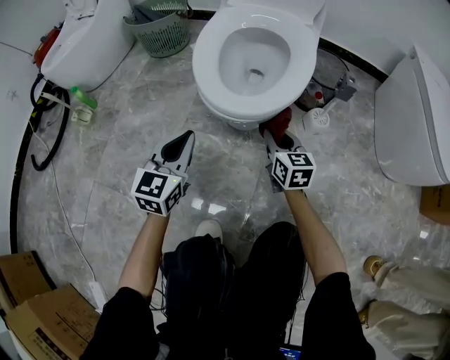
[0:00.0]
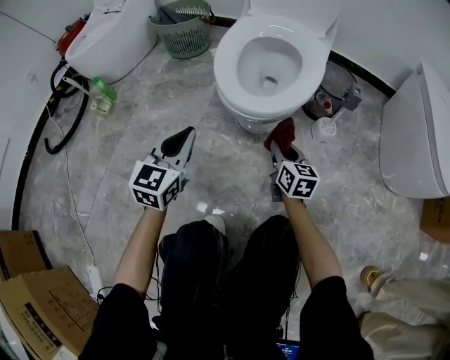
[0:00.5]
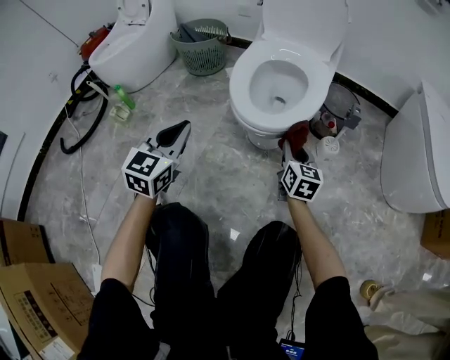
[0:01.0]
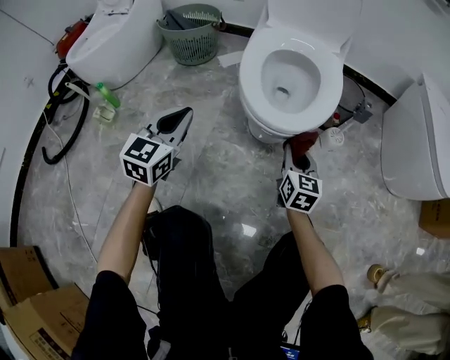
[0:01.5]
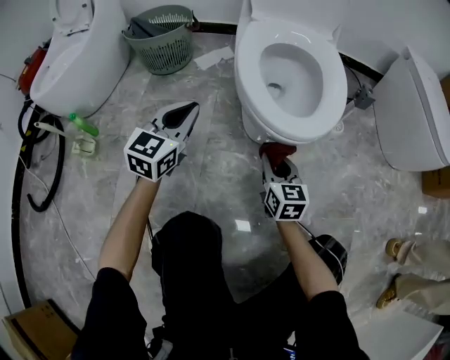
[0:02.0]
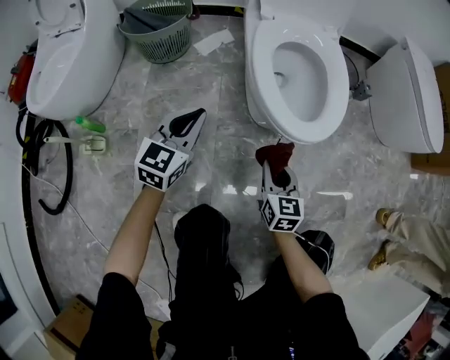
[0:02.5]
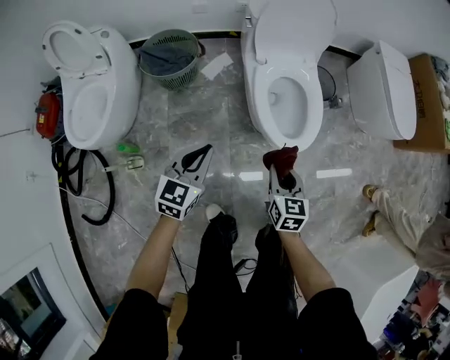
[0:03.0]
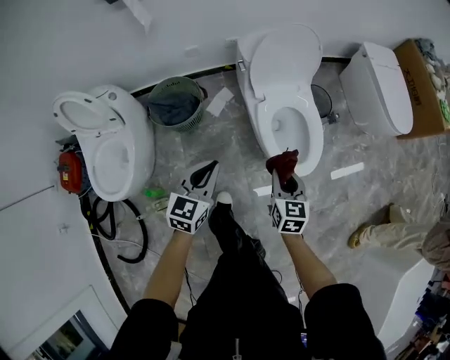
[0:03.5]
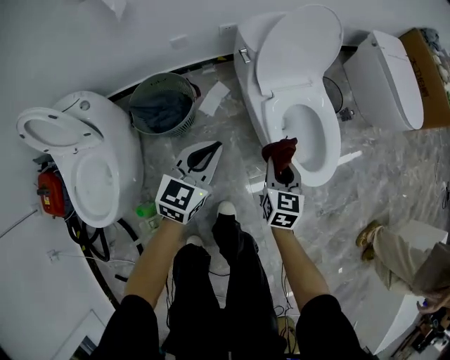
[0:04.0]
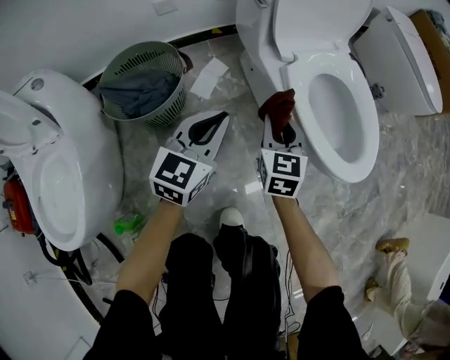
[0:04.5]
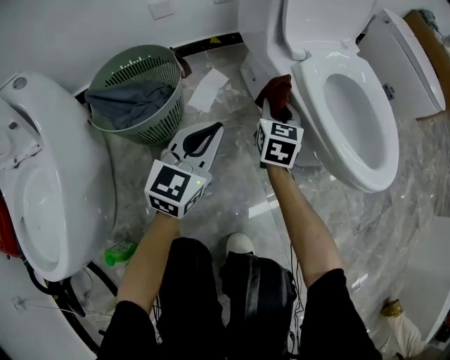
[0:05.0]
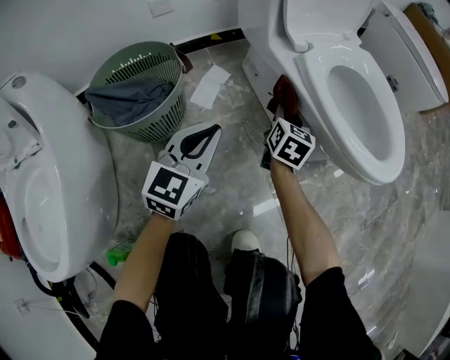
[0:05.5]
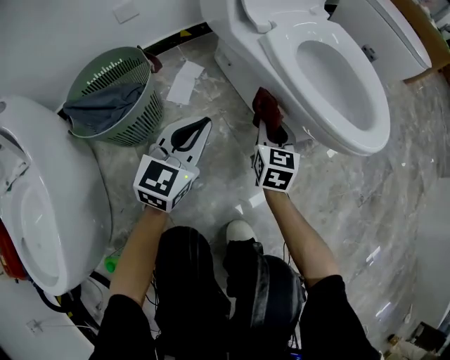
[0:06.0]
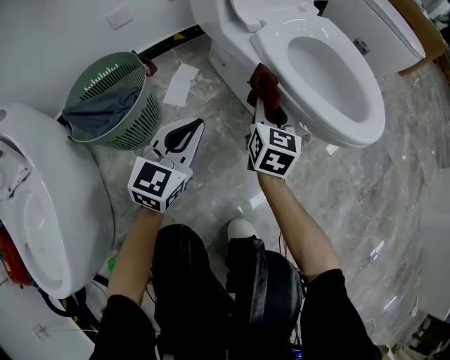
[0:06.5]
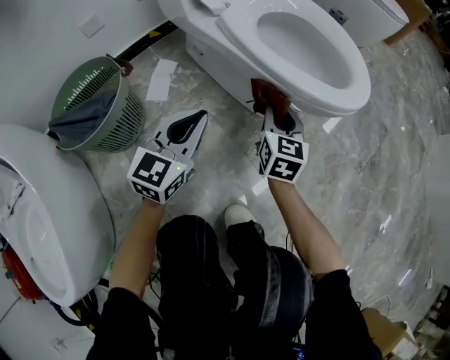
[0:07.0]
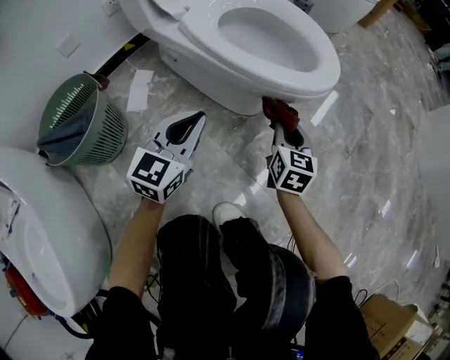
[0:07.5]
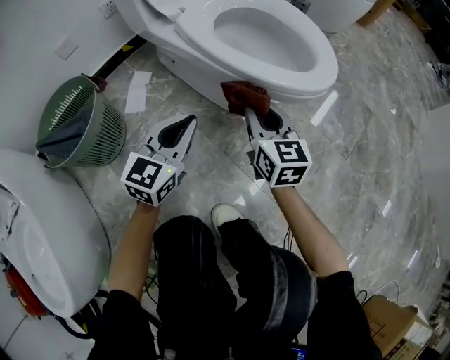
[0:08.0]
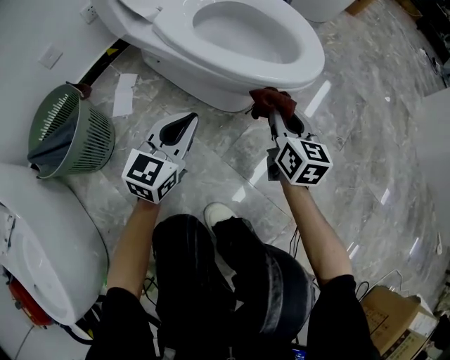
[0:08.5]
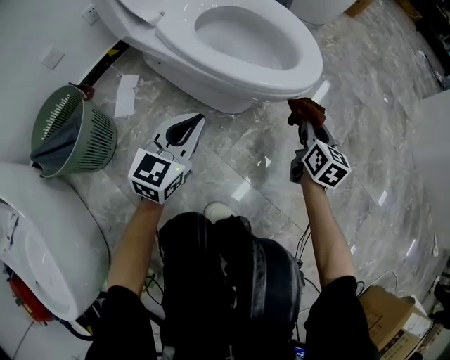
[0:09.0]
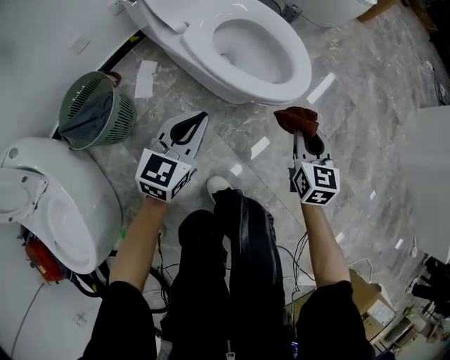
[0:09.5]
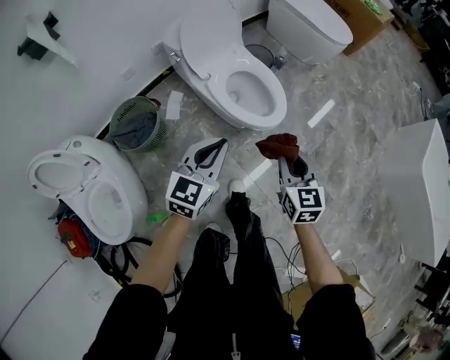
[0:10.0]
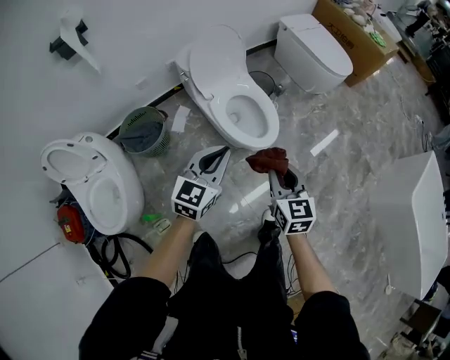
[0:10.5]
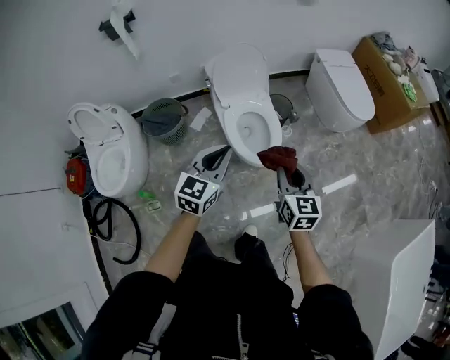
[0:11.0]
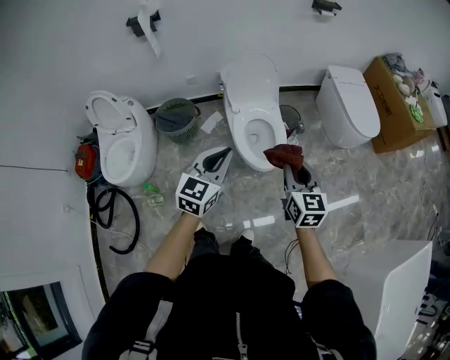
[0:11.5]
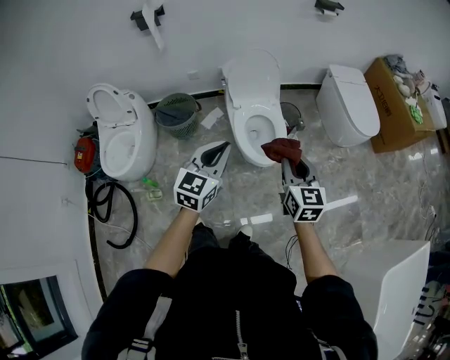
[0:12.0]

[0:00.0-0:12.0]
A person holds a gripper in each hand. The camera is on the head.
0:00.0 to 0:02.0: The left gripper is displaced to the left and forward by about 20 cm; the right gripper heads to the left, covering some 15 cm.
0:02.0 to 0:04.0: Both grippers move upward, approximately 30 cm. The left gripper swivels roughly 30 degrees; the right gripper changes its angle by approximately 30 degrees.
0:04.0 to 0:06.0: Both grippers travel together downward, approximately 35 cm.
0:06.0 to 0:08.0: The right gripper goes about 15 cm to the right and upward. Meanwhile the left gripper goes approximately 15 cm to the right.
0:08.0 to 0:10.0: Both grippers travel together upward, approximately 50 cm.
0:10.0 to 0:12.0: Both grippers move upward, roughly 20 cm. The right gripper swivels approximately 30 degrees, while the left gripper swivels approximately 30 degrees.

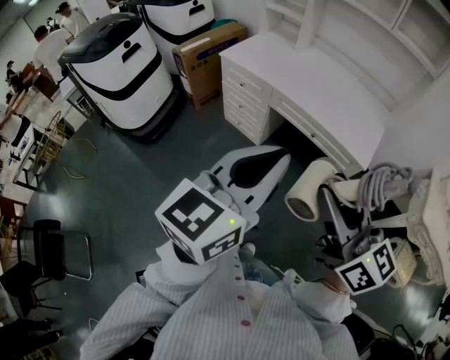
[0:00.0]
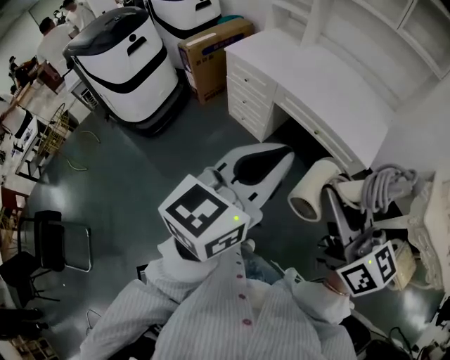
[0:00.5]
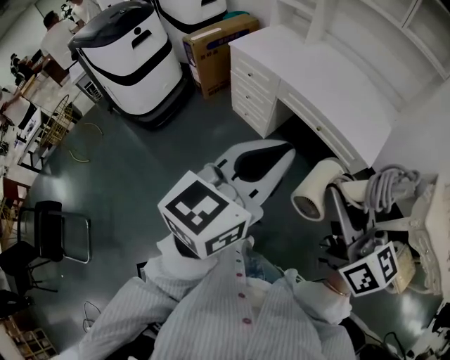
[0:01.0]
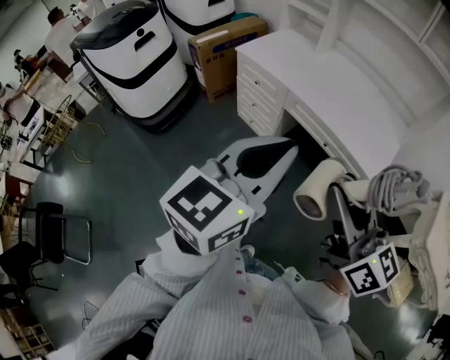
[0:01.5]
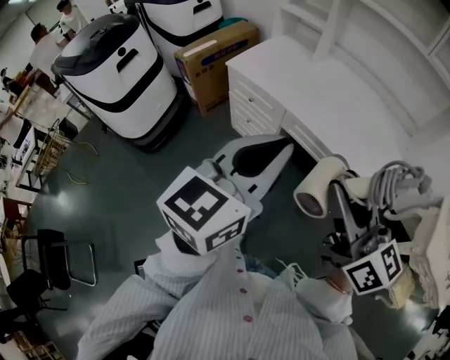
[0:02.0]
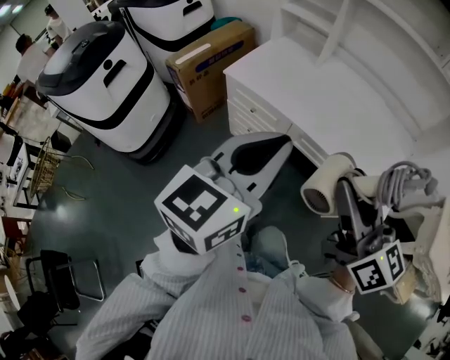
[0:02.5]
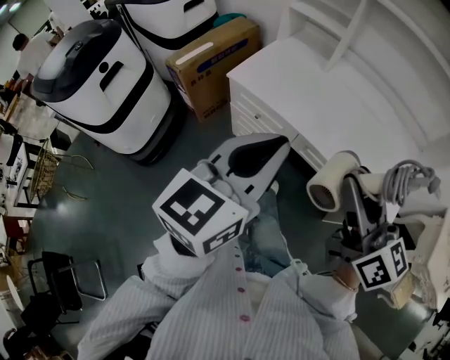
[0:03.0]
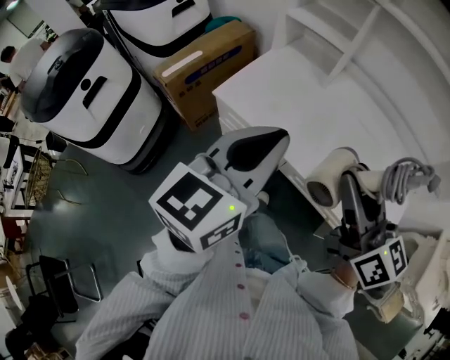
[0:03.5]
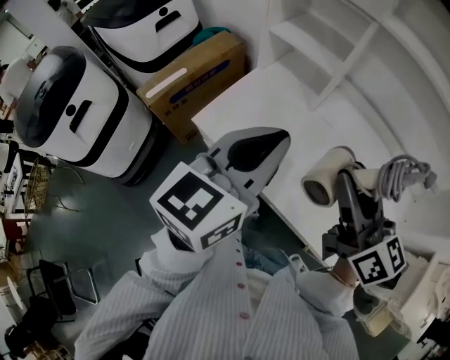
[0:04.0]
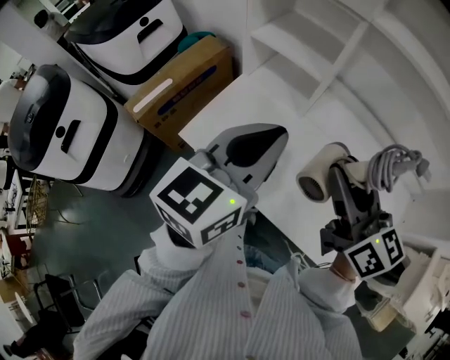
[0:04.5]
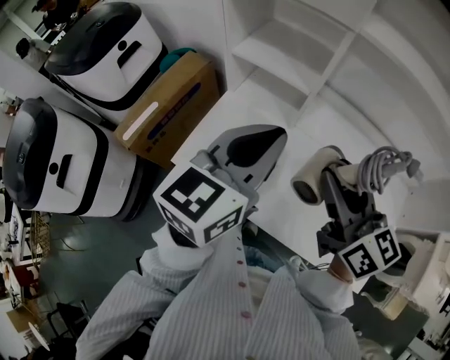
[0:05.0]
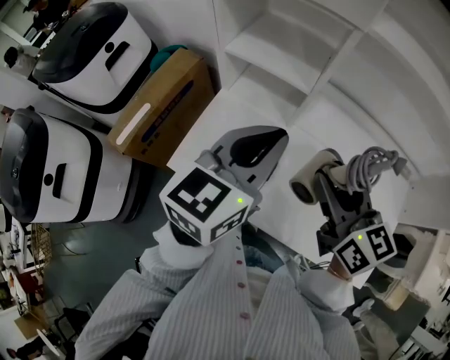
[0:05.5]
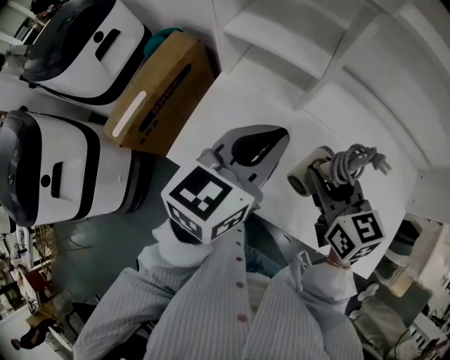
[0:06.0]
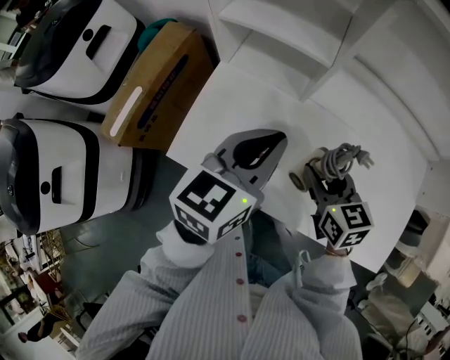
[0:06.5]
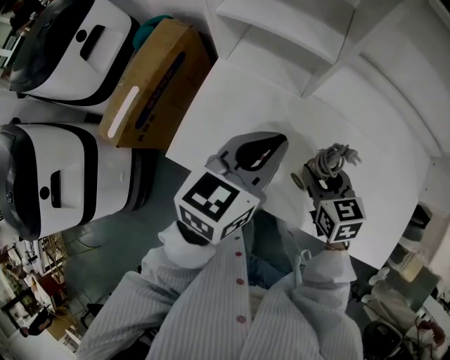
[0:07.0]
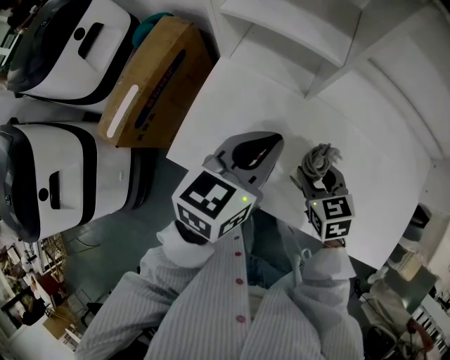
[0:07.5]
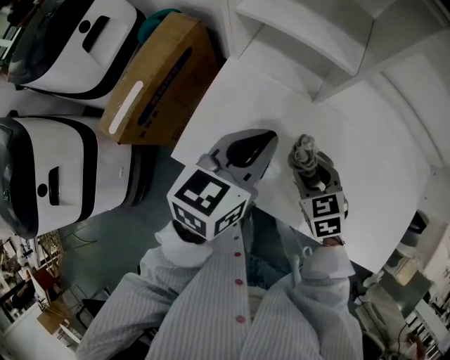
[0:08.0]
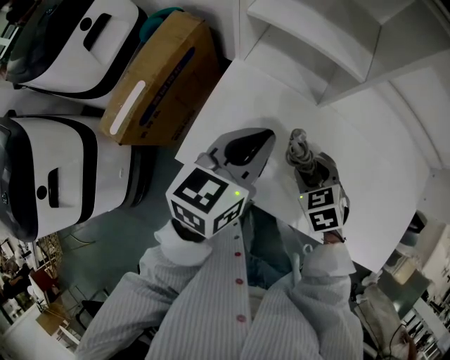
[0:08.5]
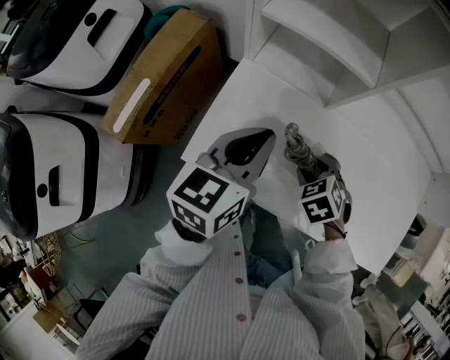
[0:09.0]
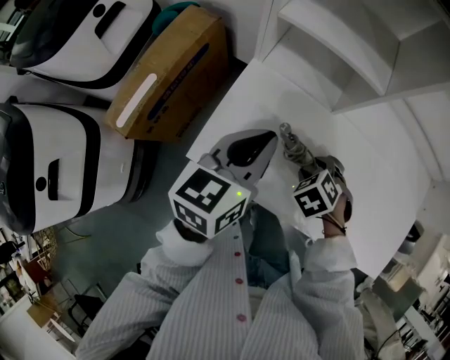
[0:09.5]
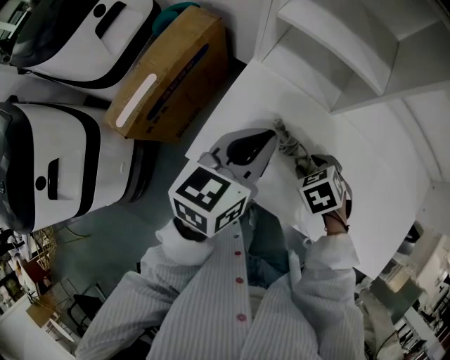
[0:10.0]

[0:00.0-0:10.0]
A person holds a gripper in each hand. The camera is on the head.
0:00.0 to 0:02.0: Both grippers move forward, roughly 20 cm.
0:02.0 to 0:04.0: The two grippers travel together, forward, roughly 50 cm.
0:04.0 to 0:06.0: The left gripper is displaced forward and downward by about 15 cm; the right gripper goes some 20 cm downward and forward, and swivels approximately 30 degrees.
0:06.0 to 0:08.0: The right gripper shifts approximately 20 cm downward, and turns by approximately 30 degrees, while the left gripper heads downward and to the left, covering some 10 cm.
0:08.0 to 0:10.0: The right gripper moves roughly 5 cm, and swivels roughly 20 degrees, while the left gripper ends up roughly 5 cm from where it was.

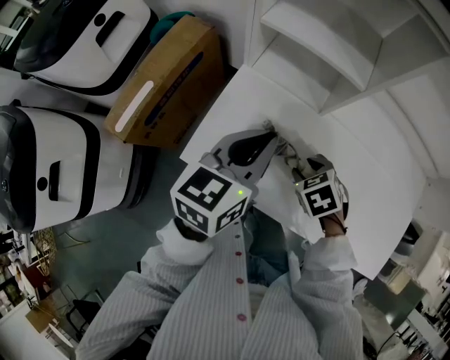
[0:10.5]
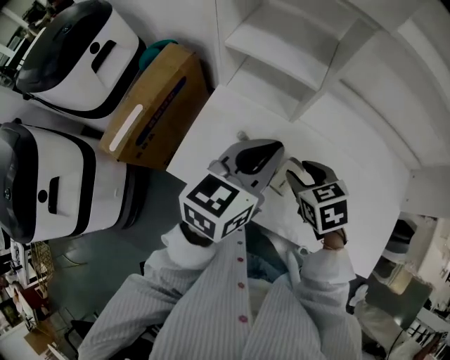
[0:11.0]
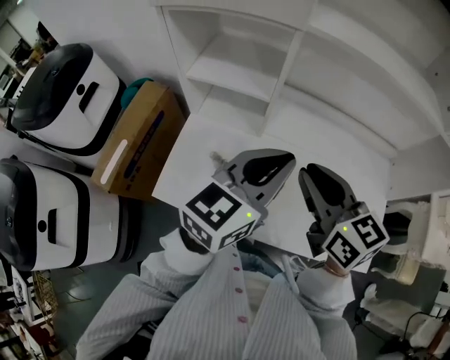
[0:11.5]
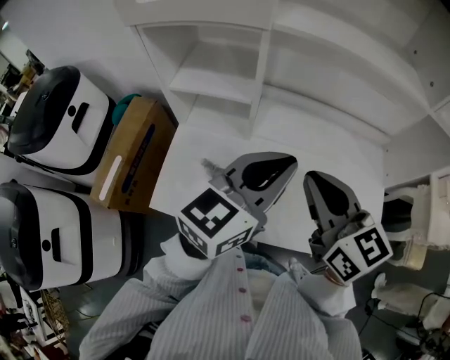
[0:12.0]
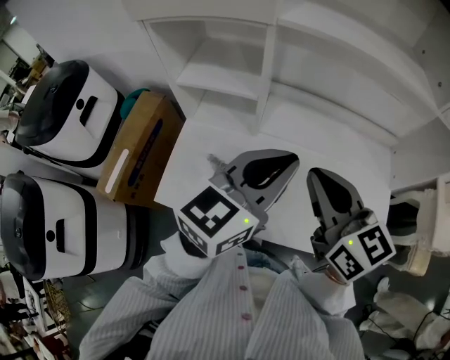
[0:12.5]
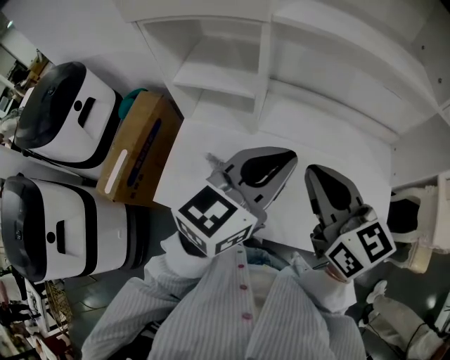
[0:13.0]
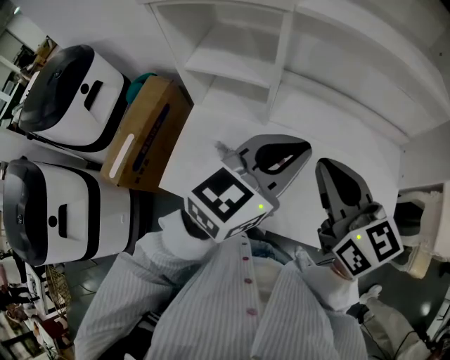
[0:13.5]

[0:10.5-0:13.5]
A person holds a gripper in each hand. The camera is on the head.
0:10.5 to 0:12.0: The right gripper heads upward and to the right, covering some 35 cm, angles its fingers upward, by about 60 degrees, and closes up; the left gripper heads to the right and upward, covering approximately 25 cm, and swivels approximately 30 degrees.
0:12.0 to 0:13.5: The grippers move only a little.

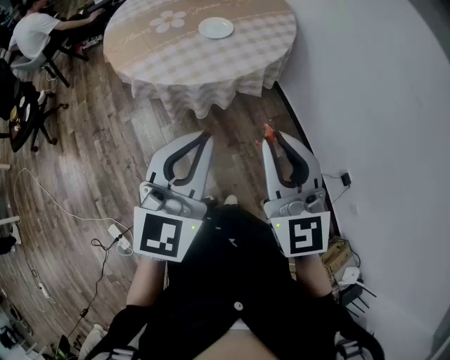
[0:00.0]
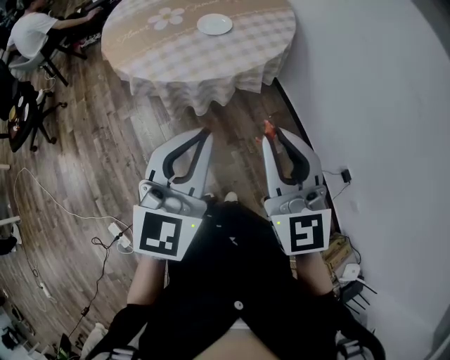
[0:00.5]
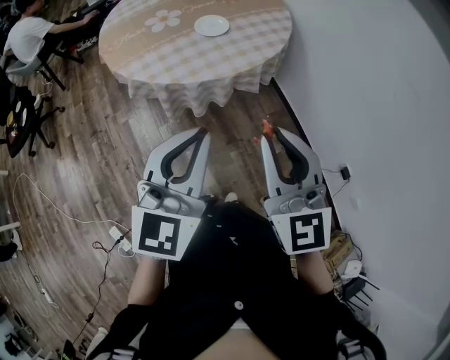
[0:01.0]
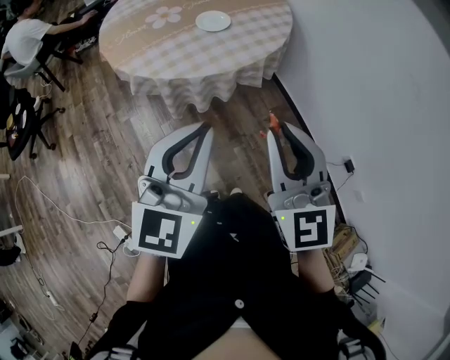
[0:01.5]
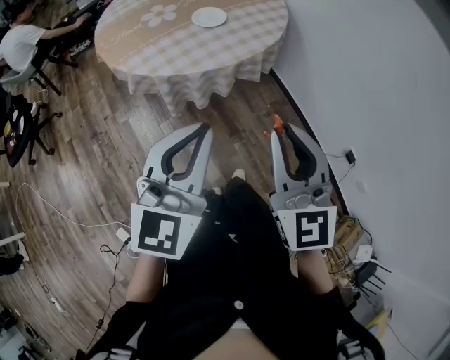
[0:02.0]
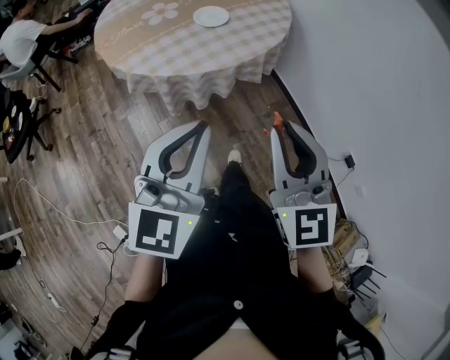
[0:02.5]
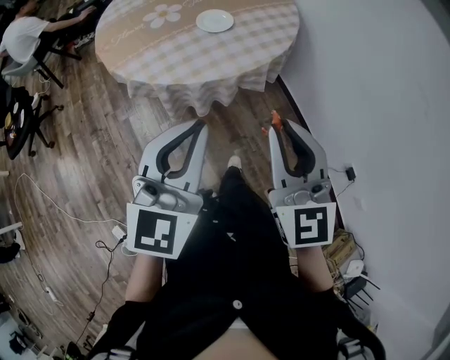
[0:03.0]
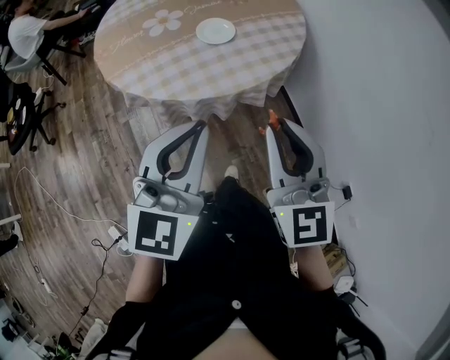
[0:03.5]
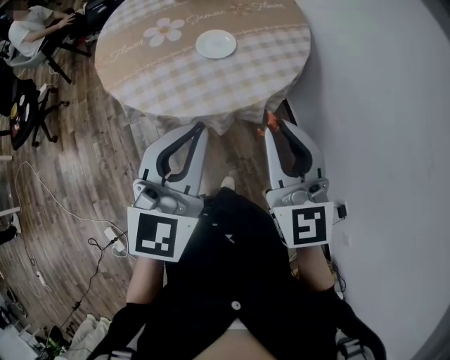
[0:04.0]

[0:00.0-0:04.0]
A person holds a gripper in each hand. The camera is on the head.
0:00.0 to 0:02.0: The grippers make only small movements.
0:02.0 to 0:04.0: The grippers both shift forward by approximately 20 cm.
